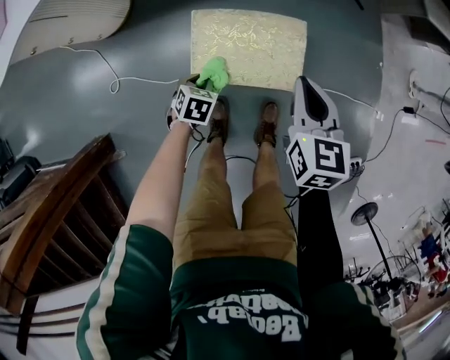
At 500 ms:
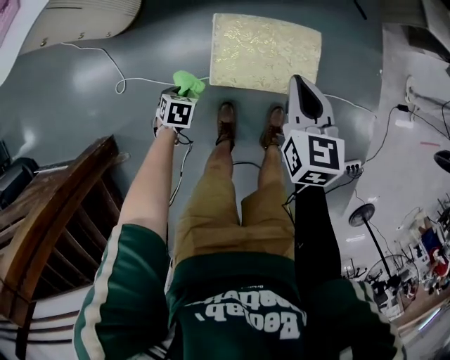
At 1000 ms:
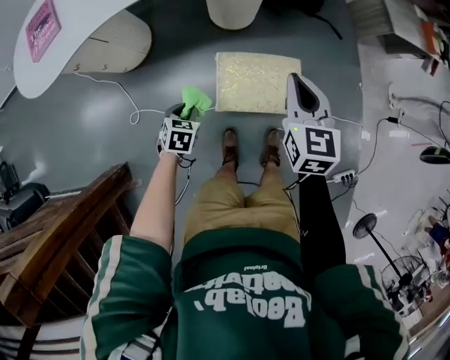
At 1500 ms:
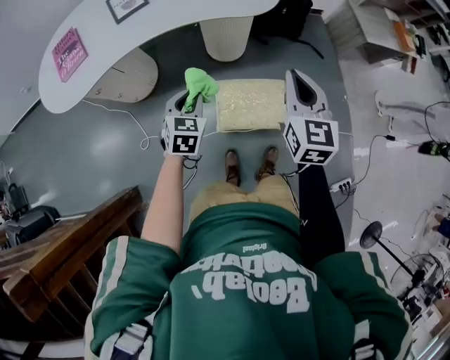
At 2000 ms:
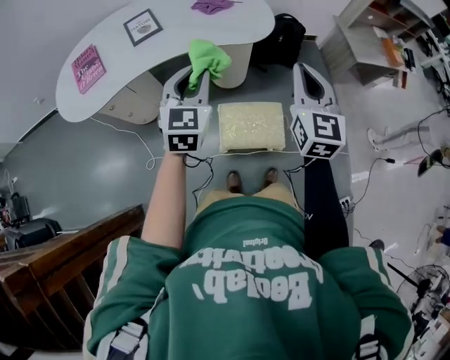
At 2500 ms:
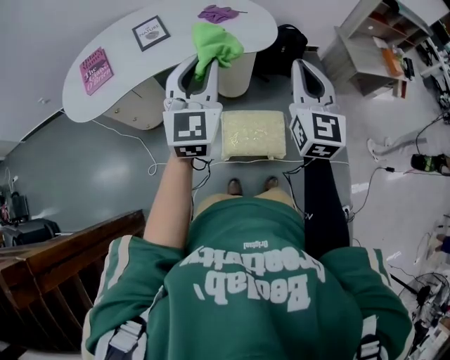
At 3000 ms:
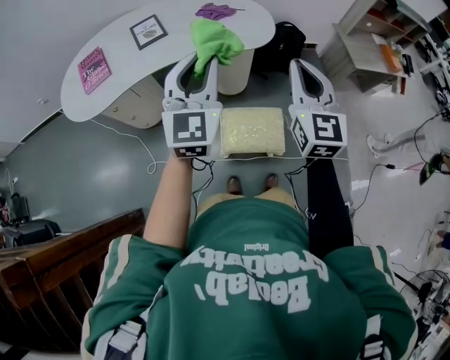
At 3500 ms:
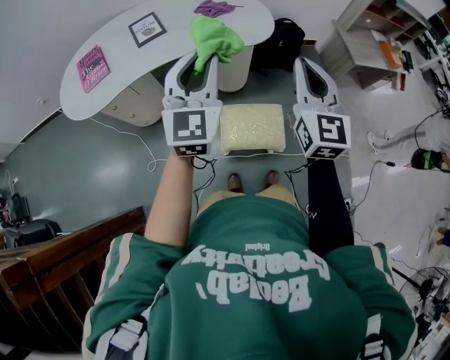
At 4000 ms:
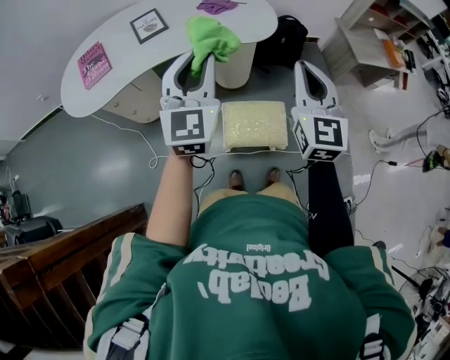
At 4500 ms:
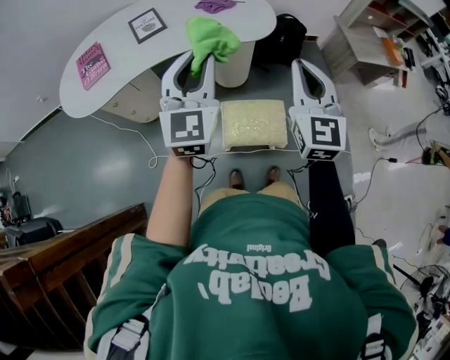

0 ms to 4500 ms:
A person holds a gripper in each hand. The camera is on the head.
0 ms to 2000 ms: The left gripper moves upward, about 60 cm, and points its fingers some 60 degrees further upward. The right gripper moves upward, roughly 40 cm, and angles its fingers upward, by approximately 30 degrees.
2000 ms to 4500 ms: The right gripper changes place by approximately 5 cm. Meanwhile the left gripper goes some 10 cm upward.

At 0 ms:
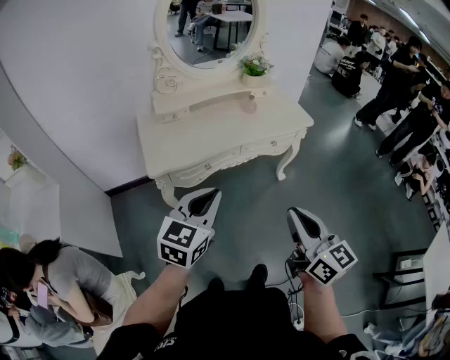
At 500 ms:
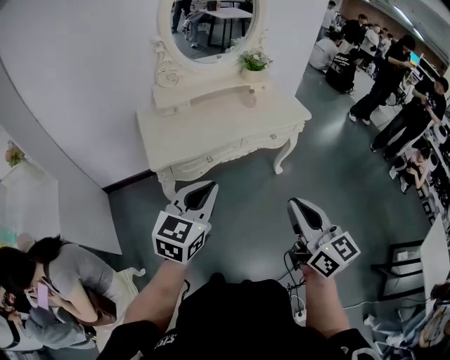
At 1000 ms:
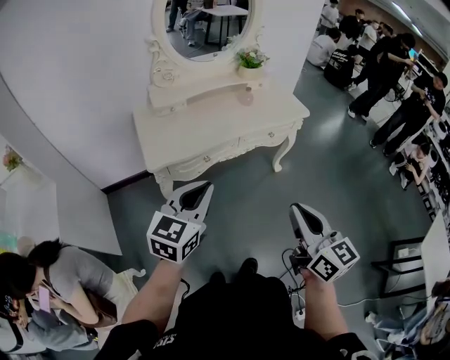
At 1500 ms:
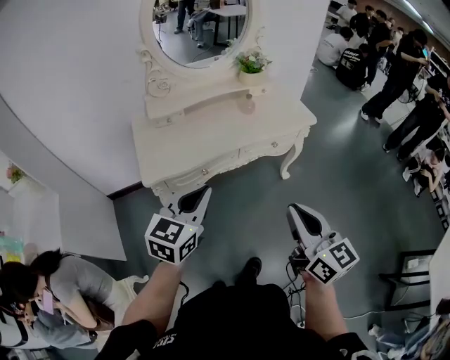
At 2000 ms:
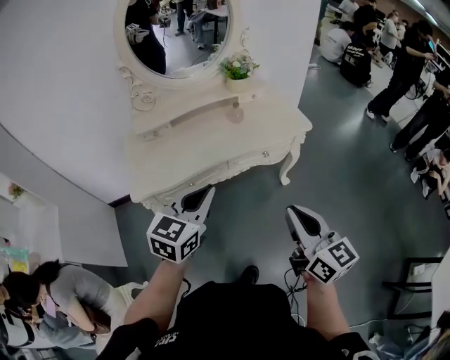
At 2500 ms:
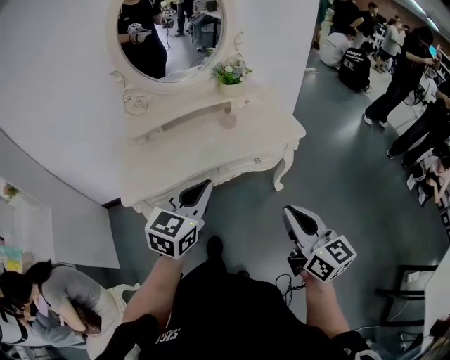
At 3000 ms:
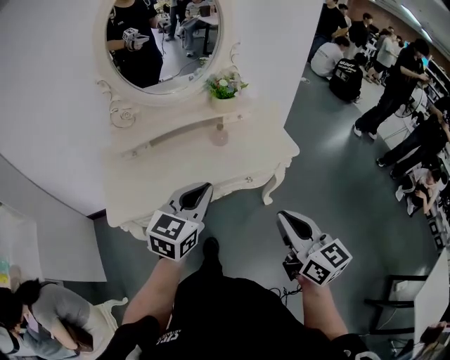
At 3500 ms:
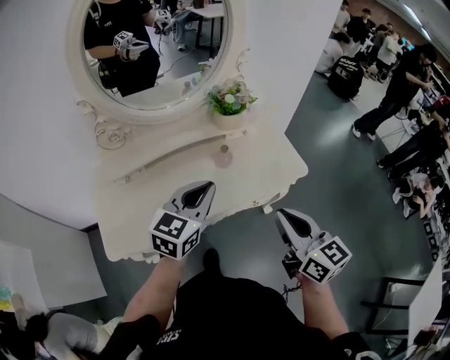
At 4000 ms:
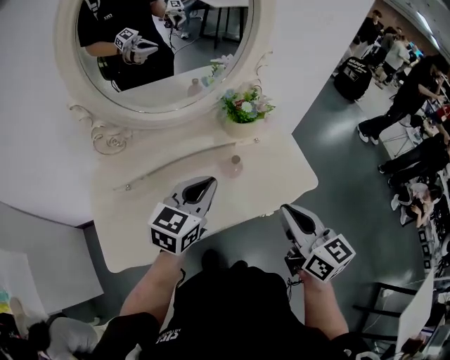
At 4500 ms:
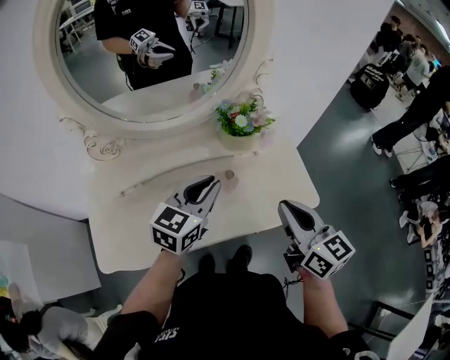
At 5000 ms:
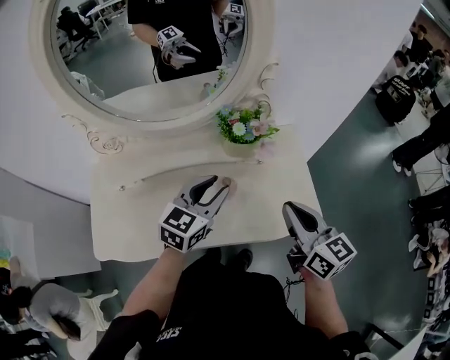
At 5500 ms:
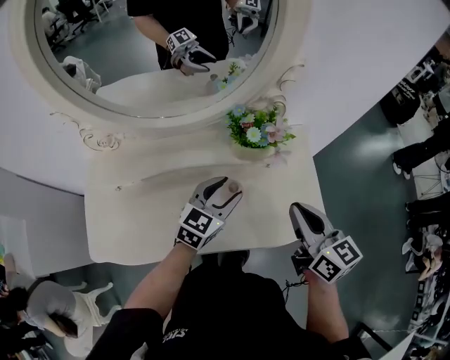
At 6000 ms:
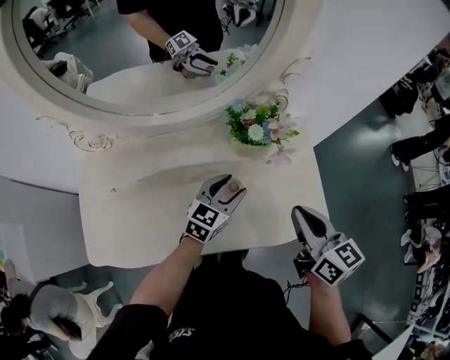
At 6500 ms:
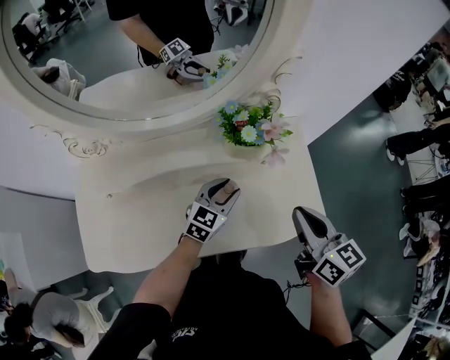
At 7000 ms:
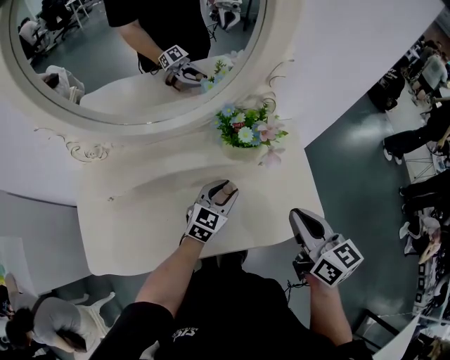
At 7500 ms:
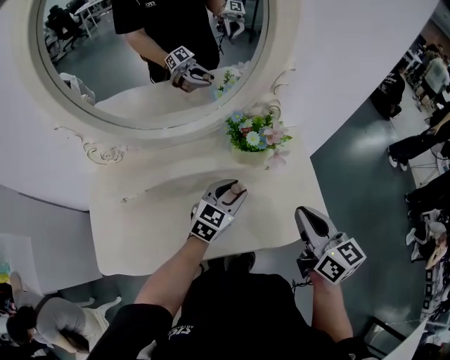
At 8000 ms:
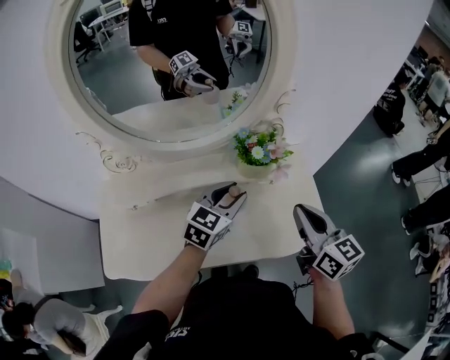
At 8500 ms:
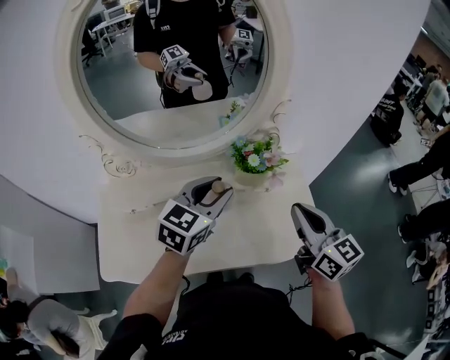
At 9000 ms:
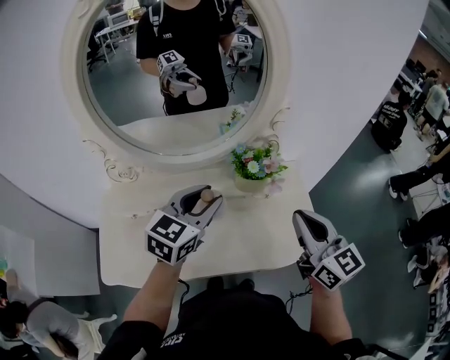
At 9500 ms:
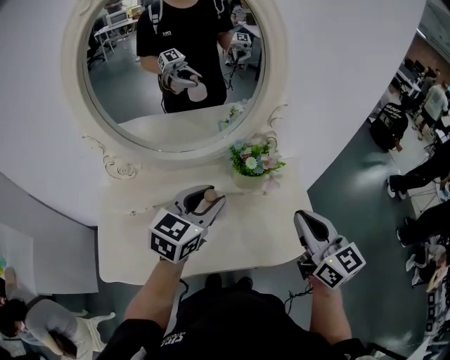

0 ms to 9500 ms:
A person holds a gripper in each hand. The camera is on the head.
0 ms to 2000 ms: The grippers both shift forward and to the right by approximately 20 cm.
2000 ms to 4000 ms: The grippers both shift forward by approximately 35 cm.
4000 ms to 5500 ms: The left gripper shifts approximately 20 cm forward, downward and to the right, and opens. The right gripper is displaced forward and to the right by approximately 20 cm.
5500 ms to 7500 ms: The left gripper reaches approximately 10 cm downward, then returns.
7500 ms to 9500 ms: The right gripper goes roughly 10 cm upward; the left gripper moves upward, some 20 cm.

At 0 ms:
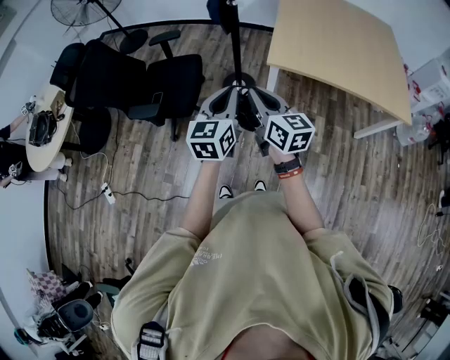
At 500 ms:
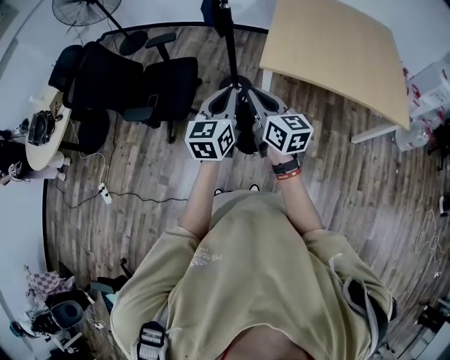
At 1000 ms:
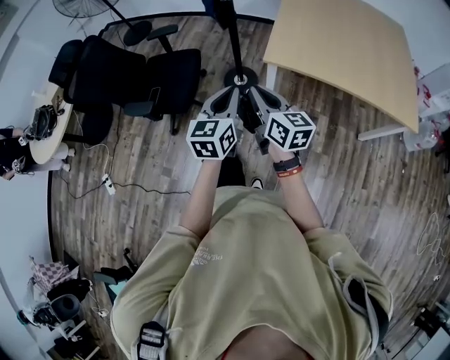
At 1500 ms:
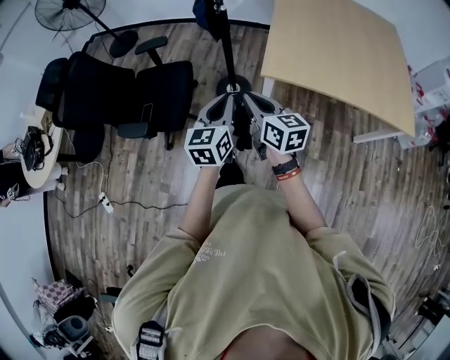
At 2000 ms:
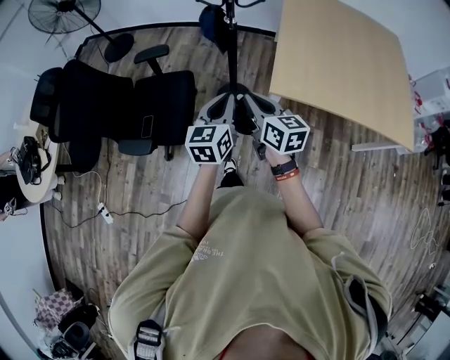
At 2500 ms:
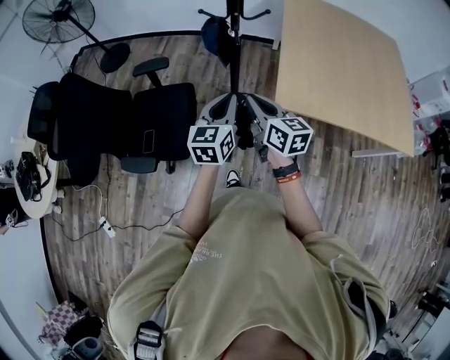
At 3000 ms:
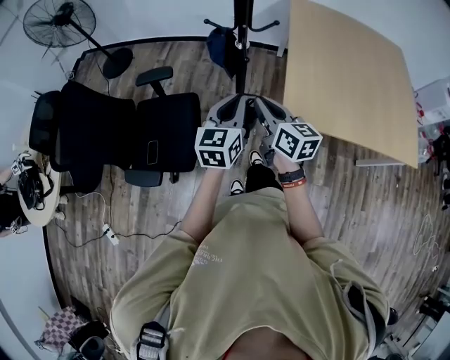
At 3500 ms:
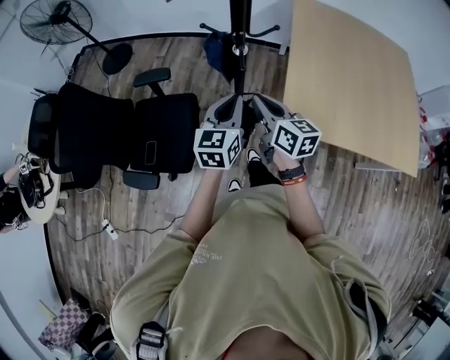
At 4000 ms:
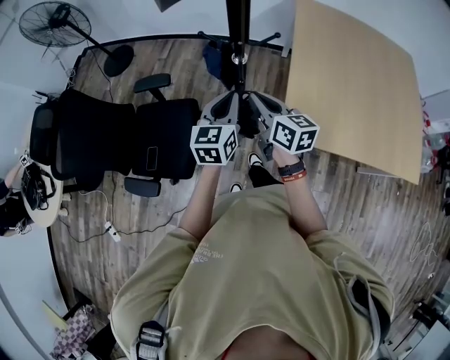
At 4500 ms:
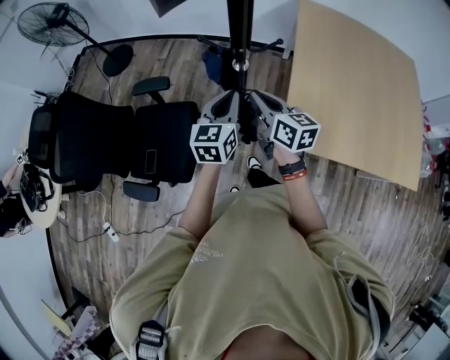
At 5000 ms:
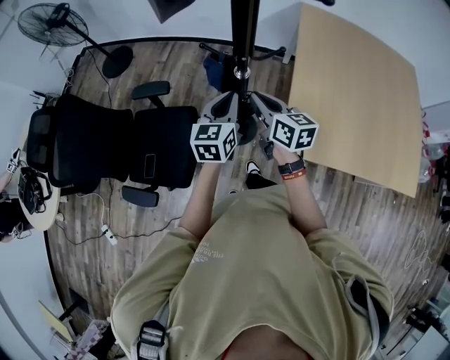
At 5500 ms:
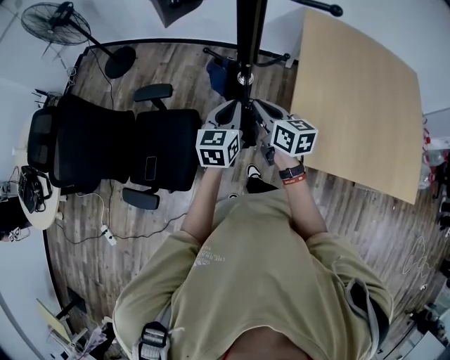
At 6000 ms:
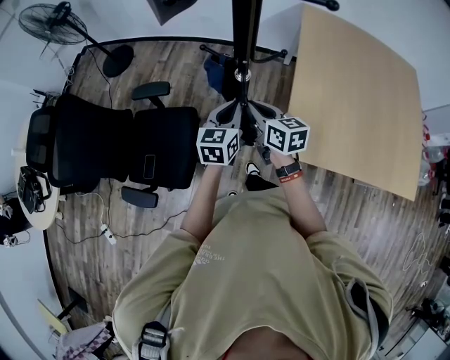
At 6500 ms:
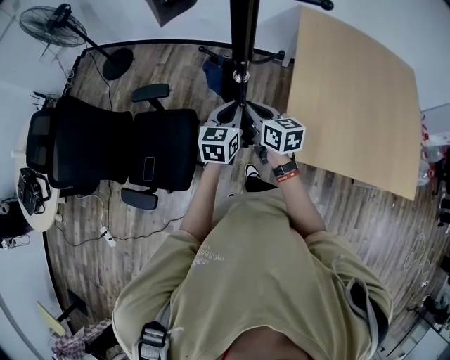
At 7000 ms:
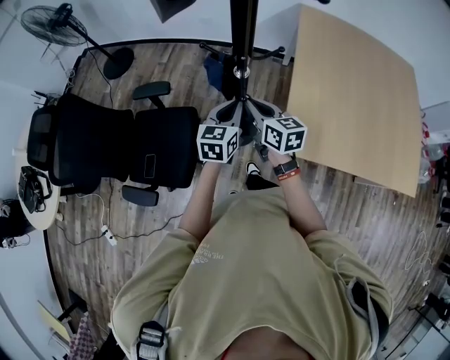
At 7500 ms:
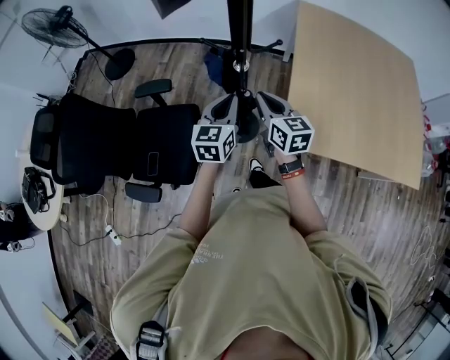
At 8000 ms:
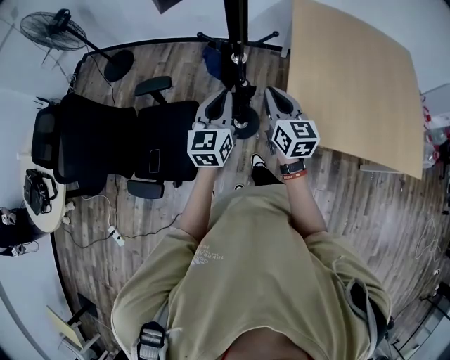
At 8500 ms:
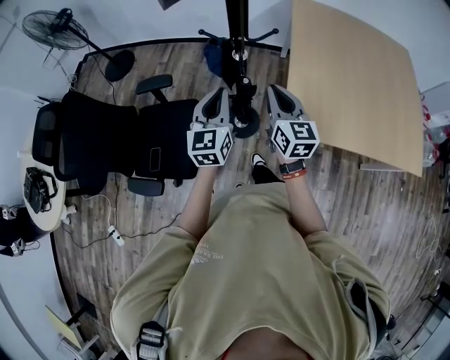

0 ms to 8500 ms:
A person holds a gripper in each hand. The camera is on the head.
0 ms to 2000 ms: Both grippers move forward, approximately 25 cm.
2000 ms to 4000 ms: The two grippers go approximately 25 cm forward.
4000 ms to 6500 ms: Both grippers travel together forward and downward, approximately 10 cm.
6500 ms to 8500 ms: The right gripper shifts approximately 15 cm backward, upward and to the right, and swivels about 30 degrees. Meanwhile the left gripper travels backward, upward and to the left by roughly 15 cm.

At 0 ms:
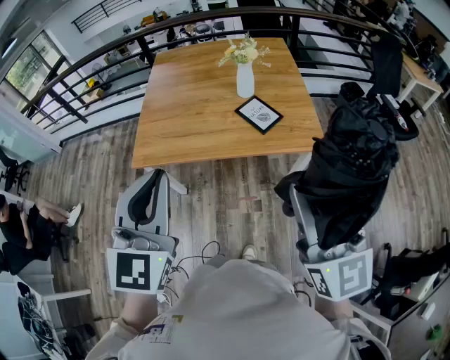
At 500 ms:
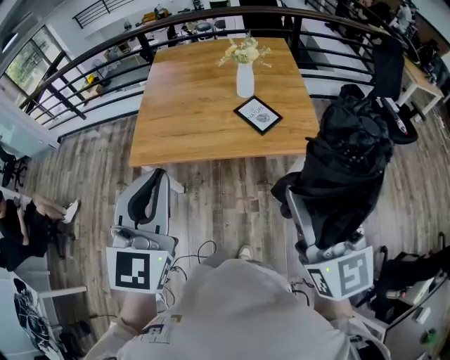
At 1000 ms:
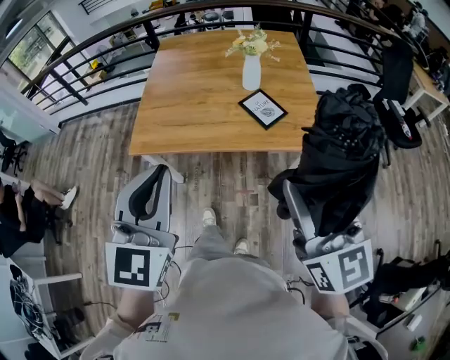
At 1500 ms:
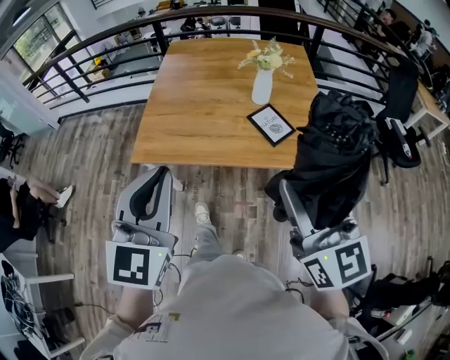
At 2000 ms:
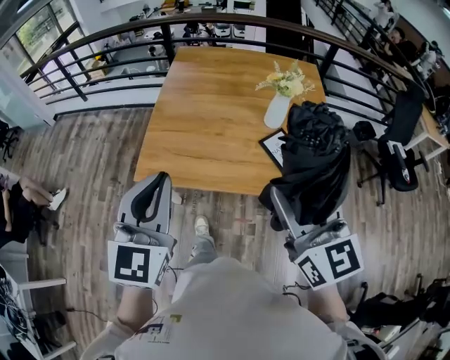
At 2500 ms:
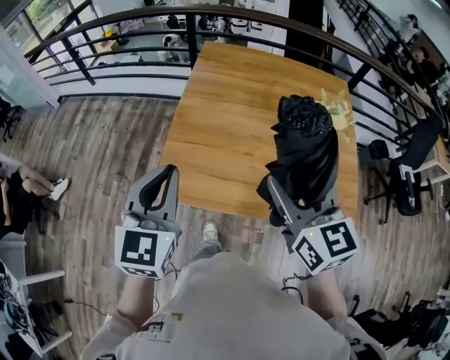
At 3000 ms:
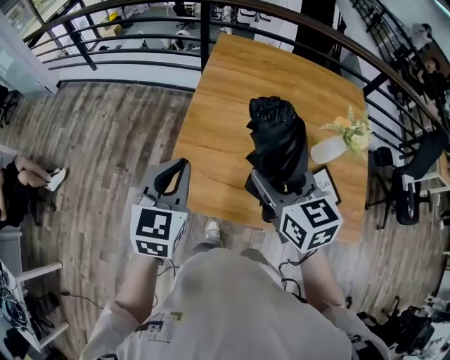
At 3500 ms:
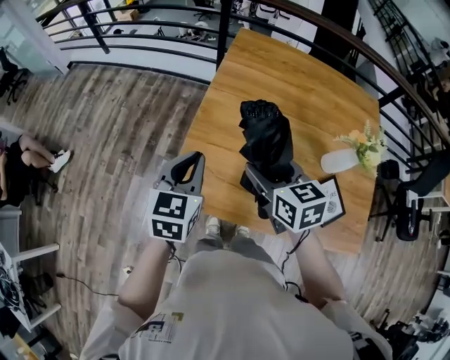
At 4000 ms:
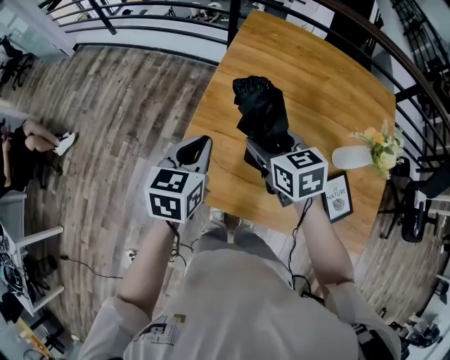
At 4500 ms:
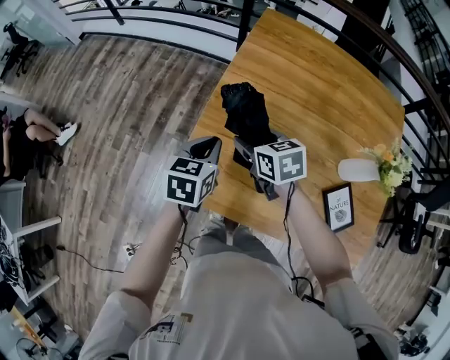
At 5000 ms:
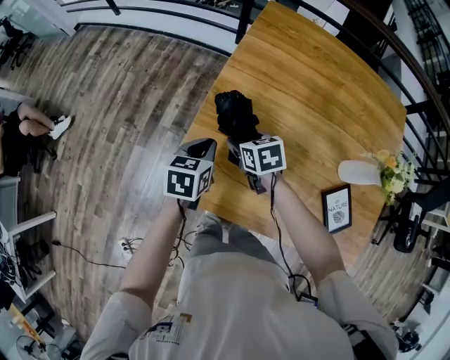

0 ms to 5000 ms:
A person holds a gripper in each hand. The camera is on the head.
0 ms to 2500 ms: The grippers both shift forward and to the left by some 40 cm. The right gripper swivels roughly 30 degrees.
2500 ms to 5000 ms: The right gripper travels downward, forward and to the left by about 50 cm, and tips its fingers downward by roughly 40 degrees. Meanwhile the left gripper travels downward and forward by roughly 35 cm, and rotates approximately 40 degrees.
